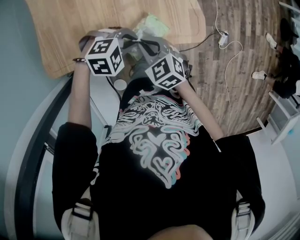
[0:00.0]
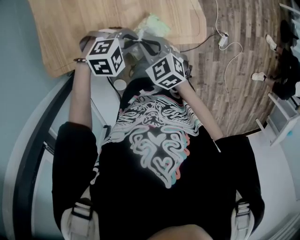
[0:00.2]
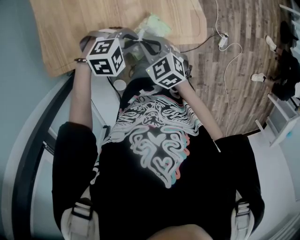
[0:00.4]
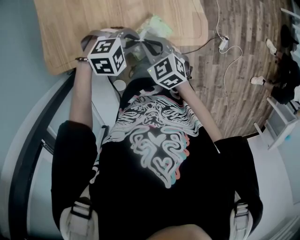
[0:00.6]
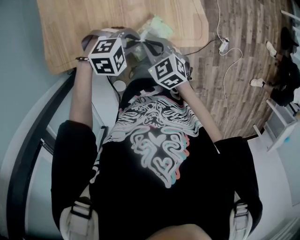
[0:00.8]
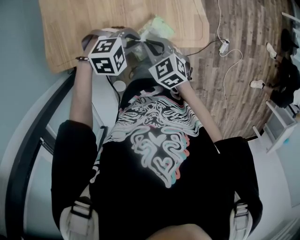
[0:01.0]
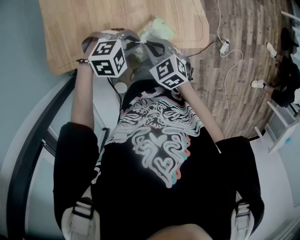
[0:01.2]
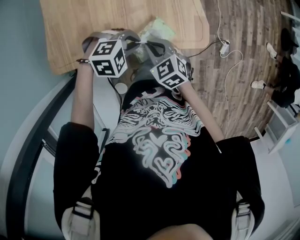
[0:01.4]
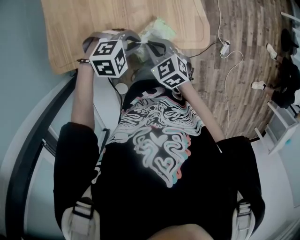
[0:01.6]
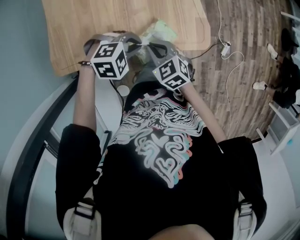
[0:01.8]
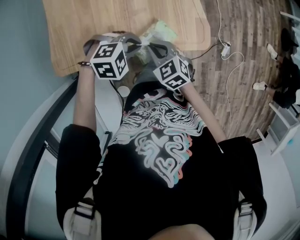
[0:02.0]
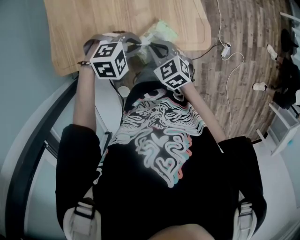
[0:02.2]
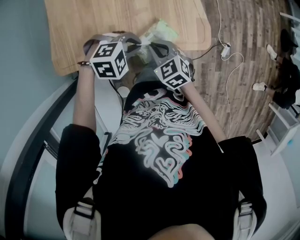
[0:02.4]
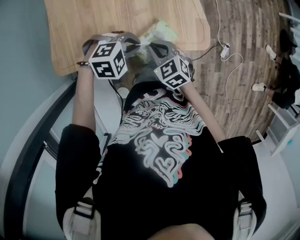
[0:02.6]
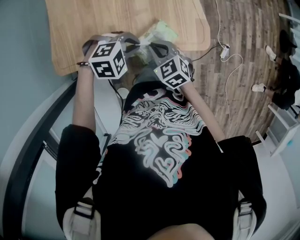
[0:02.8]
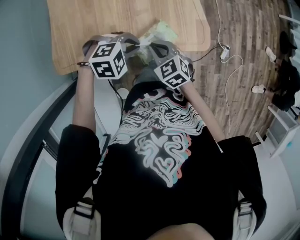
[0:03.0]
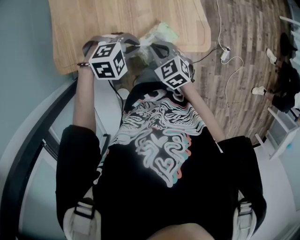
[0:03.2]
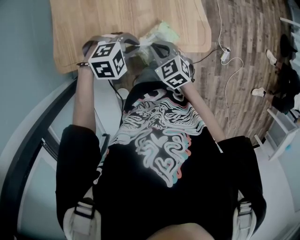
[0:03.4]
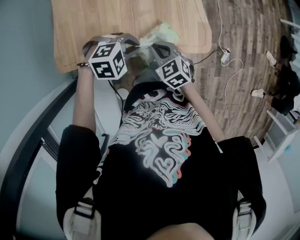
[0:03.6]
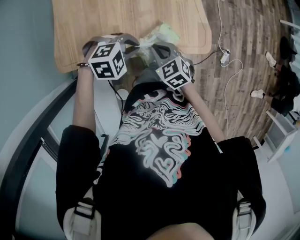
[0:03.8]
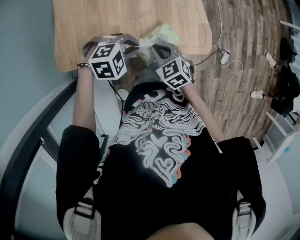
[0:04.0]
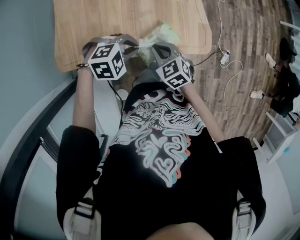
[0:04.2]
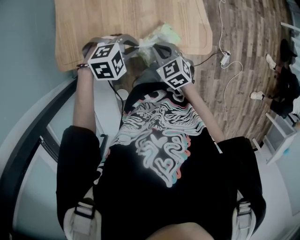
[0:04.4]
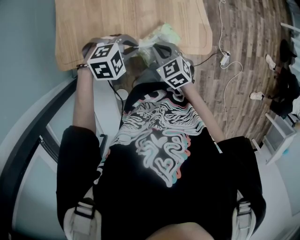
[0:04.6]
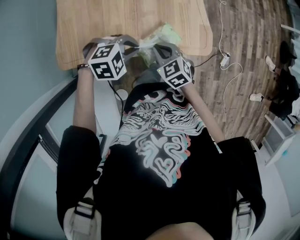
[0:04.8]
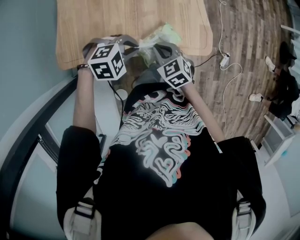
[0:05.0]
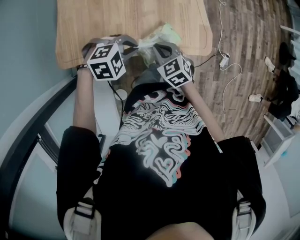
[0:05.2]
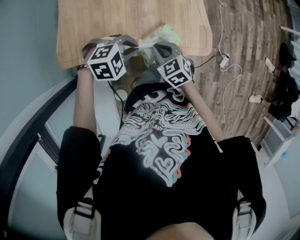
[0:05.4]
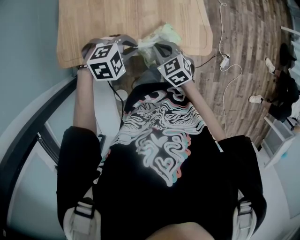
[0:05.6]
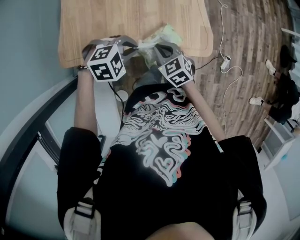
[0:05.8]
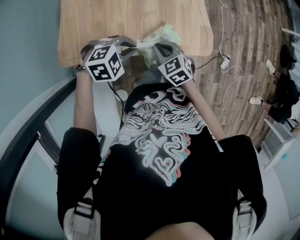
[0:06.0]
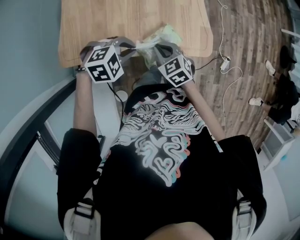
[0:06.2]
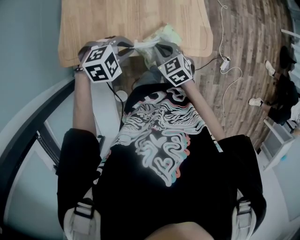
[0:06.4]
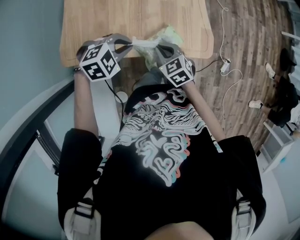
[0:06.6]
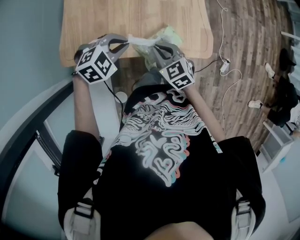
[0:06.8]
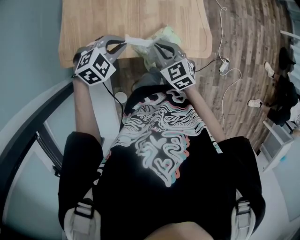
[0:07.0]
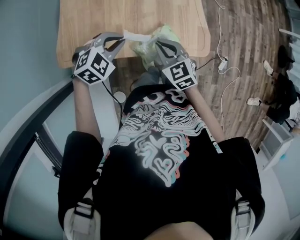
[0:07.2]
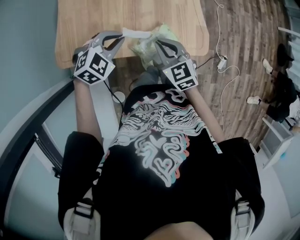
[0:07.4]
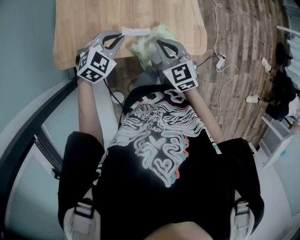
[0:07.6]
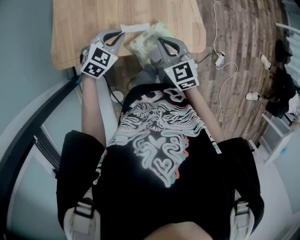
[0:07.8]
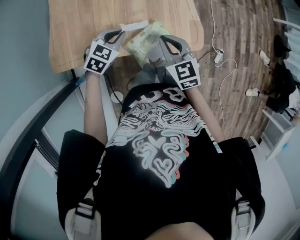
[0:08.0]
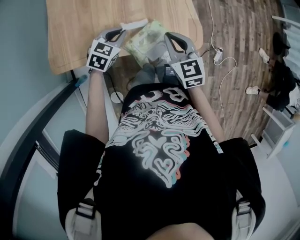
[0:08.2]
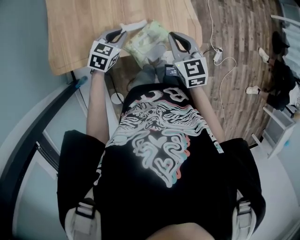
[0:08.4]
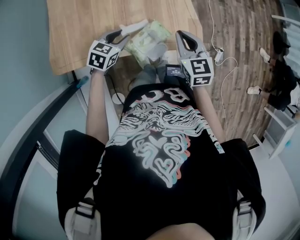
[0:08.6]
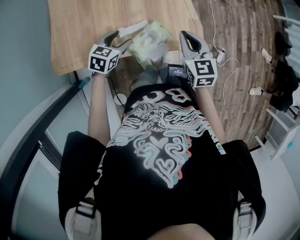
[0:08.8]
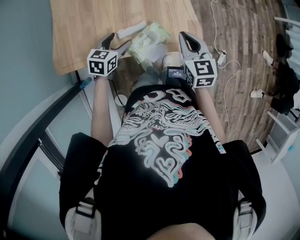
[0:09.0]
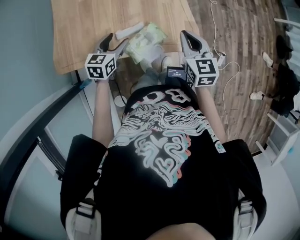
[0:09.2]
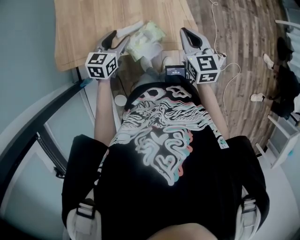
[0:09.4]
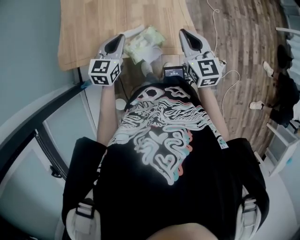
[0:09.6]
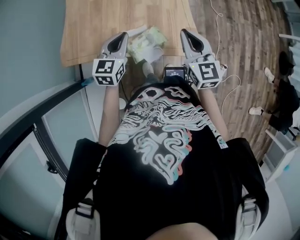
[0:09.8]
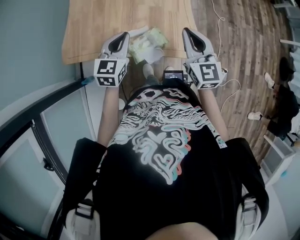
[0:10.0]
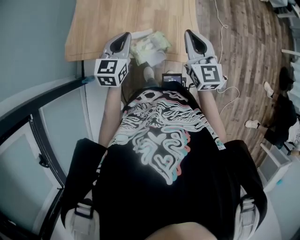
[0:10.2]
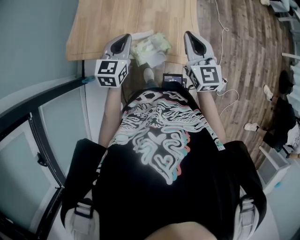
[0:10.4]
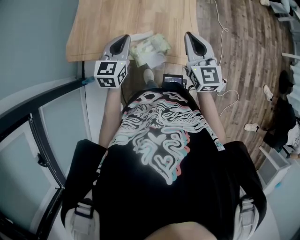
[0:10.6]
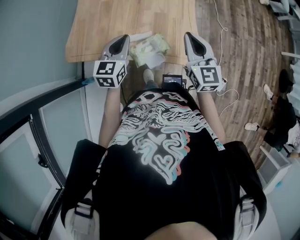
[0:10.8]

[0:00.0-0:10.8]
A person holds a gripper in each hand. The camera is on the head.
0:00.0 to 0:04.6: The grippers make only small movements.
0:04.6 to 0:06.2: The grippers stay close to where they were, moving slightly.
0:06.2 to 0:07.8: The left gripper shifts by about 5 cm, and changes its angle by approximately 30 degrees. The right gripper heads upward, covering roughly 5 cm.
0:07.8 to 0:09.2: The left gripper turns by approximately 40 degrees, and opens its fingers; the right gripper shifts about 10 cm to the right, and swivels some 20 degrees.
0:09.2 to 0:10.8: The right gripper shifts about 10 cm upward, and changes its angle by roughly 20 degrees. Meanwhile the left gripper is displaced upward by approximately 10 cm, turns by some 20 degrees, and closes its fingers.

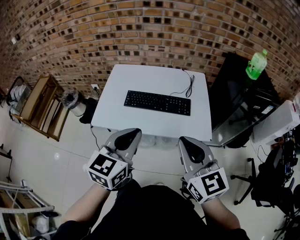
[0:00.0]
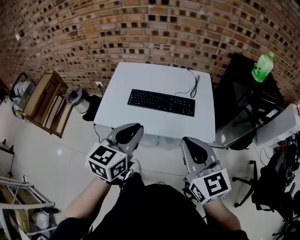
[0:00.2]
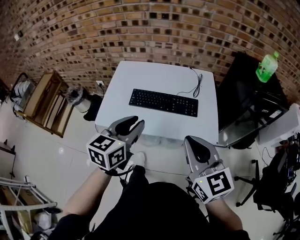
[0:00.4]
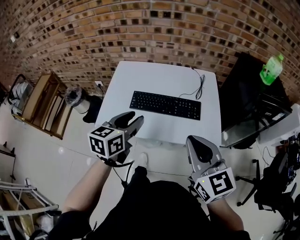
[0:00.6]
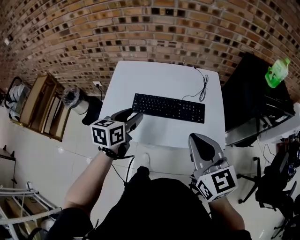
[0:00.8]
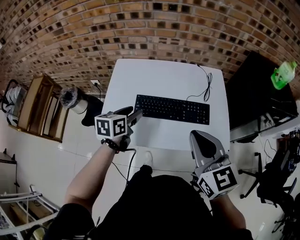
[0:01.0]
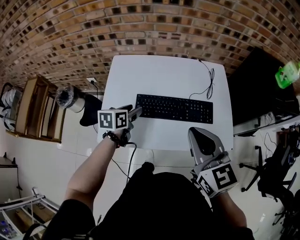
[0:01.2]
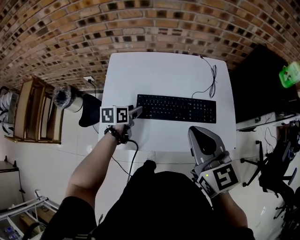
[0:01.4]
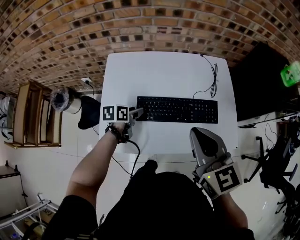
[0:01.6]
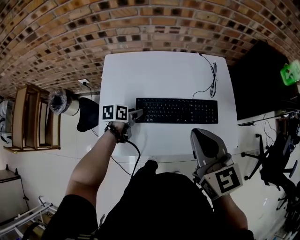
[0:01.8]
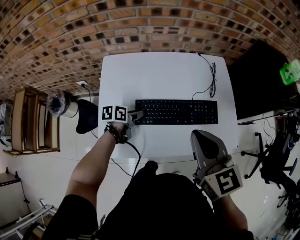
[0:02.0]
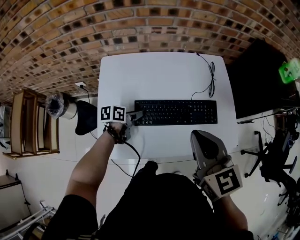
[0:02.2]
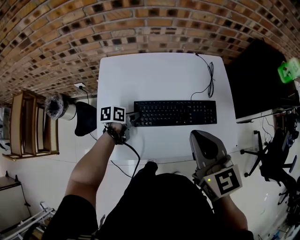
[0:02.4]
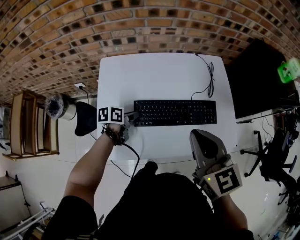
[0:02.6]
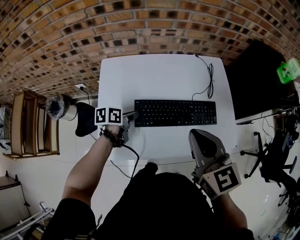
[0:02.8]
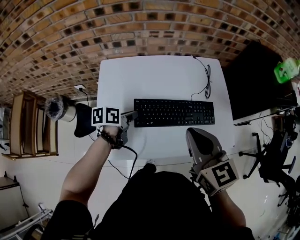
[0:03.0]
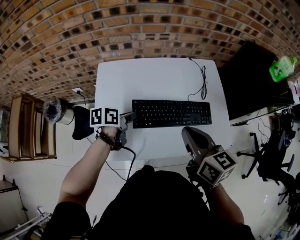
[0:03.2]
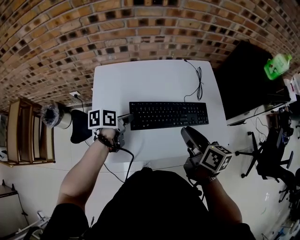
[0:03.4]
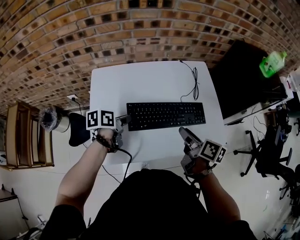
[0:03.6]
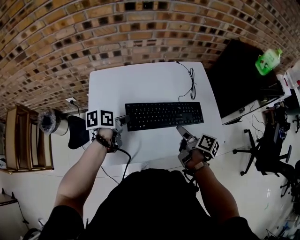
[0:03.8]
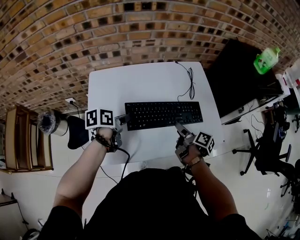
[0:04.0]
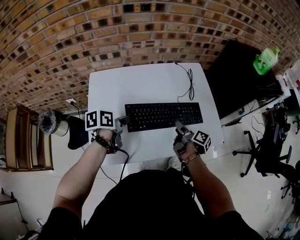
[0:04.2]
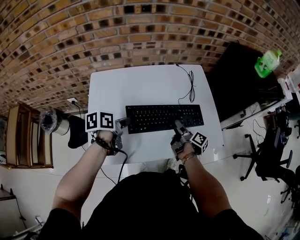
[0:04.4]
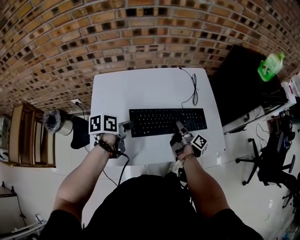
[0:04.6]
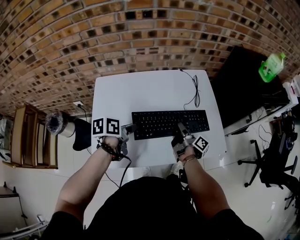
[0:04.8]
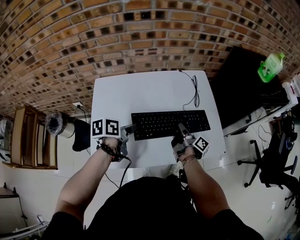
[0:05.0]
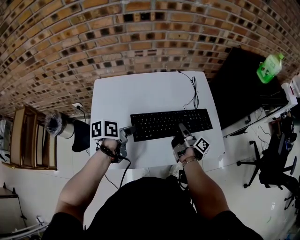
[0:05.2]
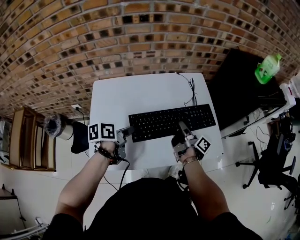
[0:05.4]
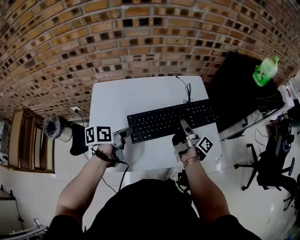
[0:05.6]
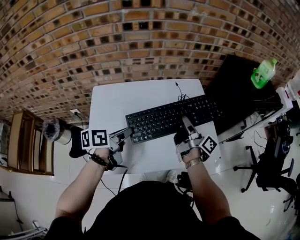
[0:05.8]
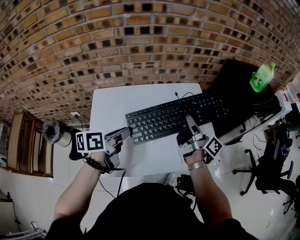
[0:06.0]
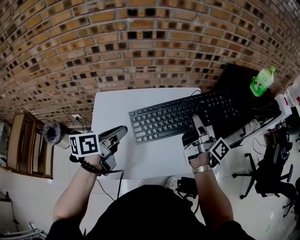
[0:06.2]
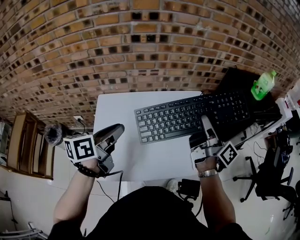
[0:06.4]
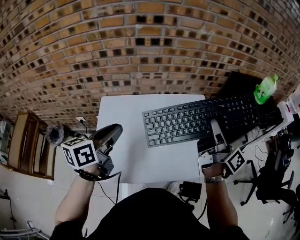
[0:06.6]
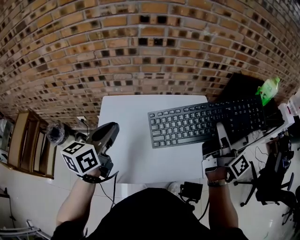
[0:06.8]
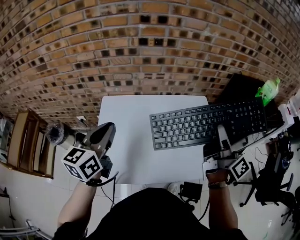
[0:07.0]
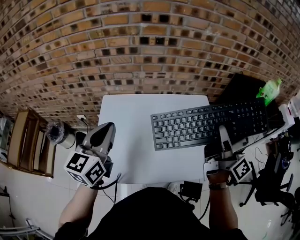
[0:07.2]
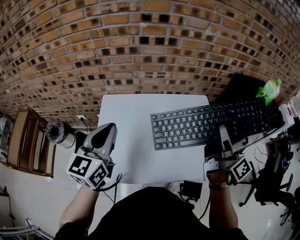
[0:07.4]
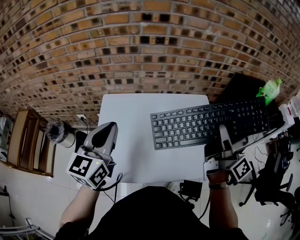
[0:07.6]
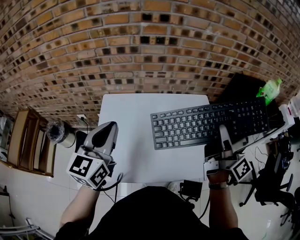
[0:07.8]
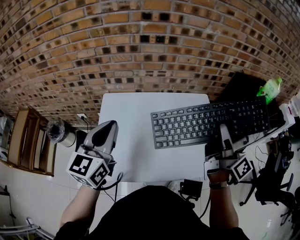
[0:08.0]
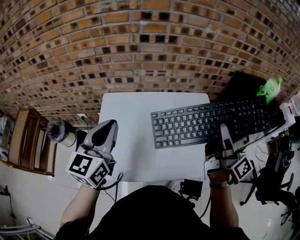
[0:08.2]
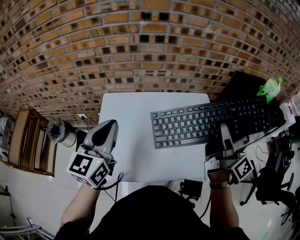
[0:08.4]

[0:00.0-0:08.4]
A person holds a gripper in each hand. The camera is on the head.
0:00.0 to 0:01.4: The left gripper goes approximately 40 cm forward, downward and to the left, swivels about 50 degrees, and opens. The right gripper shifts some 25 cm forward and to the left.
0:01.4 to 0:02.8: The left gripper closes up.
0:02.8 to 0:04.2: The right gripper is displaced downward by roughly 25 cm, twists approximately 80 degrees clockwise, seen from behind, and opens. The left gripper heads upward, covering about 5 cm.
0:04.2 to 0:05.6: The left gripper changes place by about 5 cm; the right gripper shifts some 10 cm upward and forward, rotates some 30 degrees, and closes its fingers.
0:05.6 to 0:07.0: The left gripper travels upward and to the left by some 20 cm, and rotates roughly 50 degrees; the right gripper goes about 25 cm upward, and rotates approximately 30 degrees.
0:07.0 to 0:08.4: There are only small adjustments of the grippers.

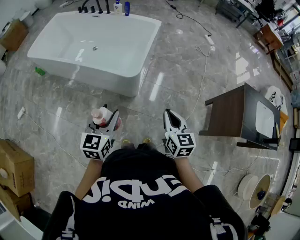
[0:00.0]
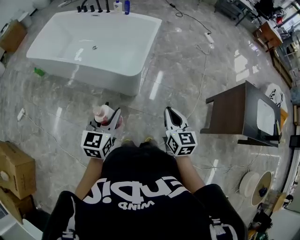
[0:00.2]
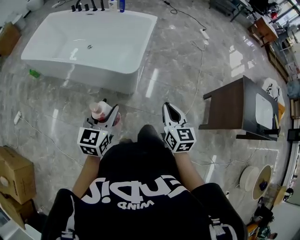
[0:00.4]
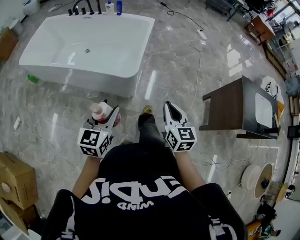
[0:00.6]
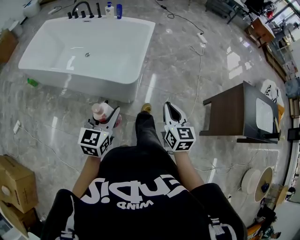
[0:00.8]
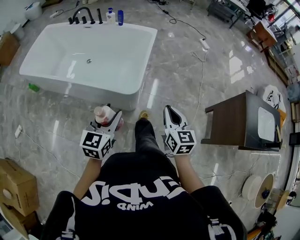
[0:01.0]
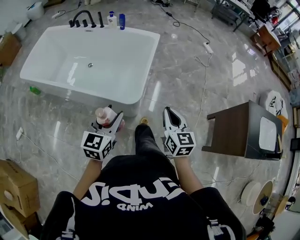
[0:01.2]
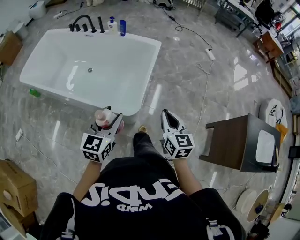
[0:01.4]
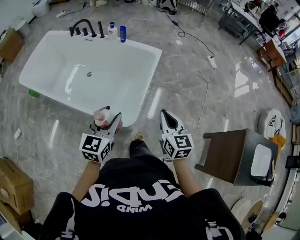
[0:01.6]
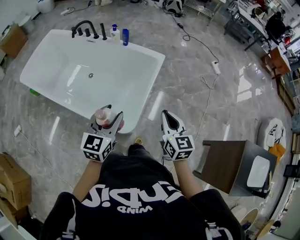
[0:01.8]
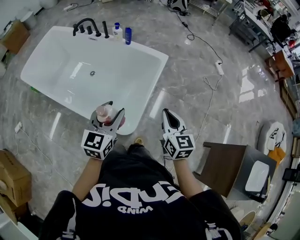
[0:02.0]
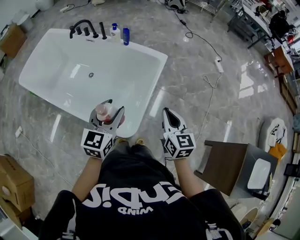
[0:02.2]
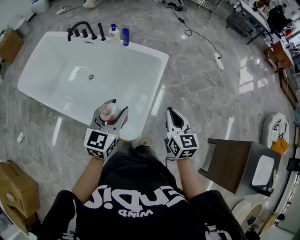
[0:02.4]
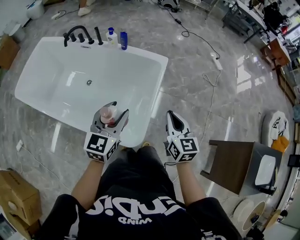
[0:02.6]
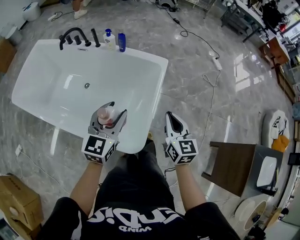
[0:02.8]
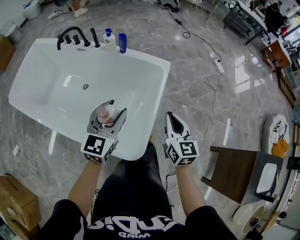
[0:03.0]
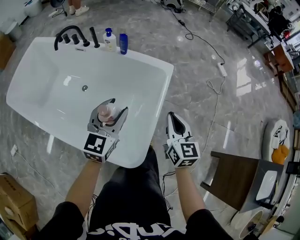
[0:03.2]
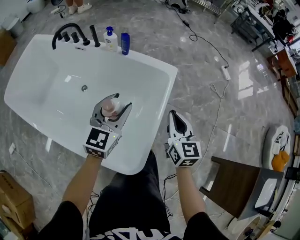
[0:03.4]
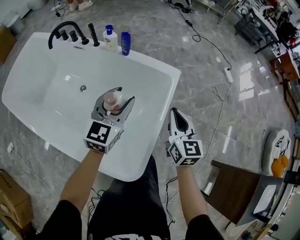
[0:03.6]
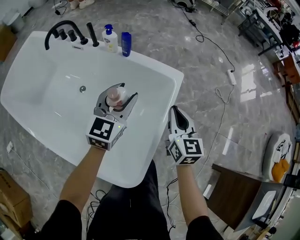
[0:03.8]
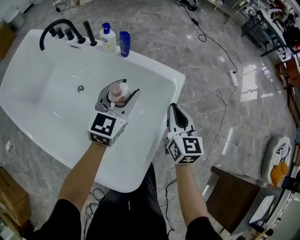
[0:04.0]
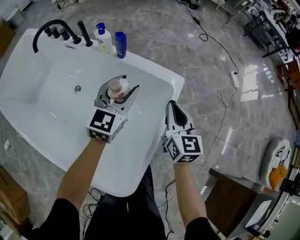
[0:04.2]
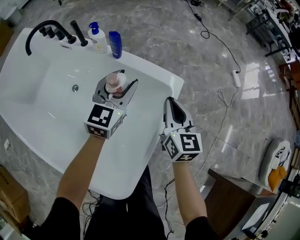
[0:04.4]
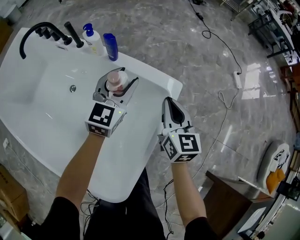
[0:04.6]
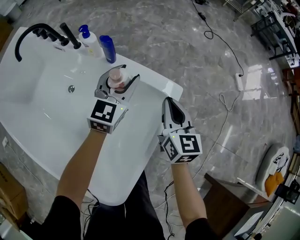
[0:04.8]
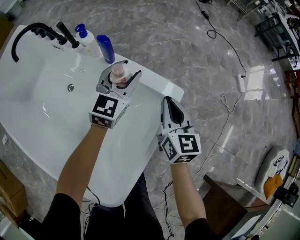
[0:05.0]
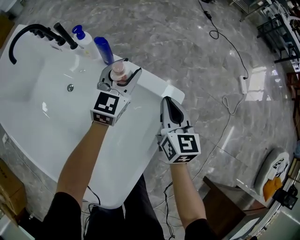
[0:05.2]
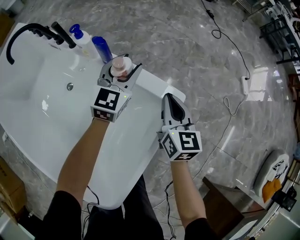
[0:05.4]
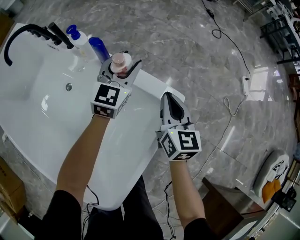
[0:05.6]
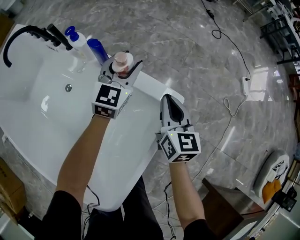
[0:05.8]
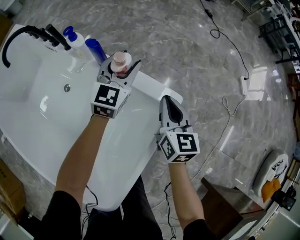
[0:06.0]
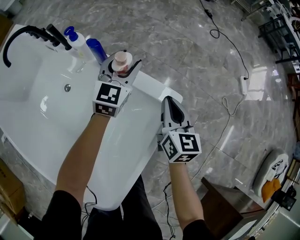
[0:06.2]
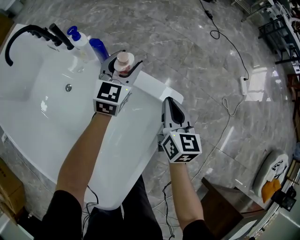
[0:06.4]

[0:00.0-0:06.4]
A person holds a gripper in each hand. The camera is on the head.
0:00.0 to 0:01.6: The grippers both shift forward by some 35 cm.
0:01.6 to 0:03.2: The grippers both shift forward by about 25 cm.
0:03.2 to 0:04.8: The two grippers go about 35 cm forward and downward.
0:04.8 to 0:06.4: The right gripper moves forward, about 5 cm; the left gripper moves forward and downward, some 10 cm.
